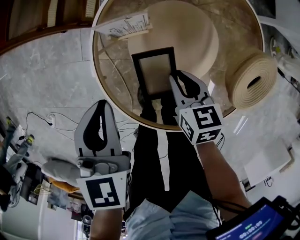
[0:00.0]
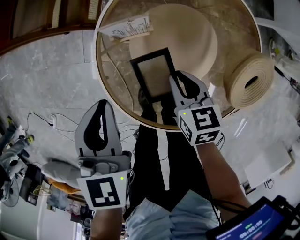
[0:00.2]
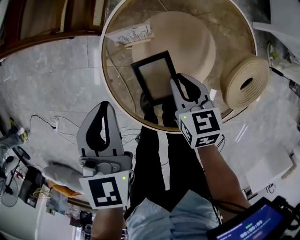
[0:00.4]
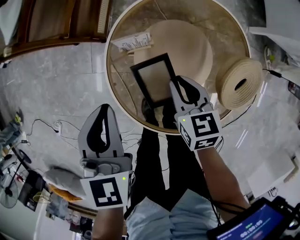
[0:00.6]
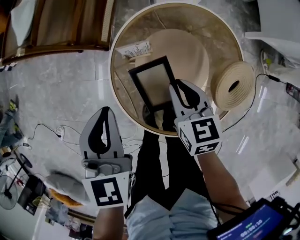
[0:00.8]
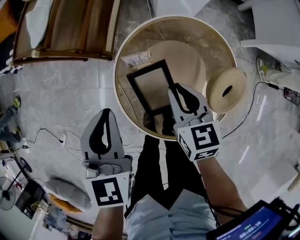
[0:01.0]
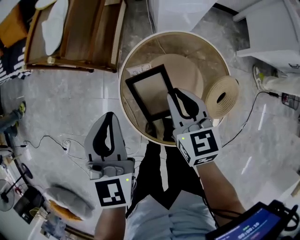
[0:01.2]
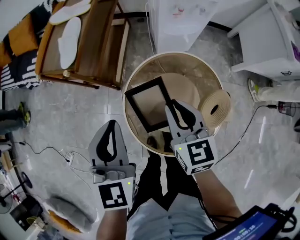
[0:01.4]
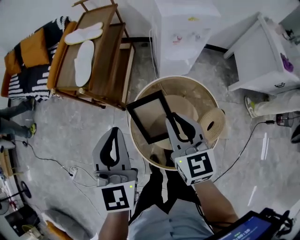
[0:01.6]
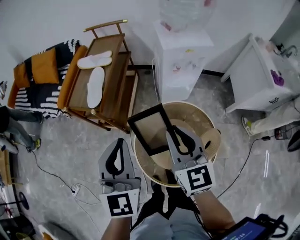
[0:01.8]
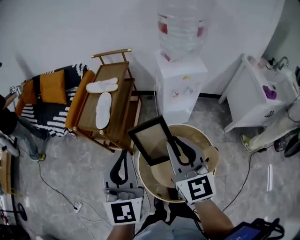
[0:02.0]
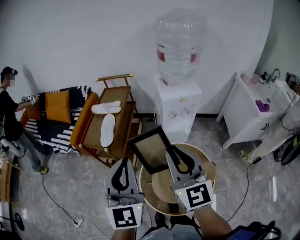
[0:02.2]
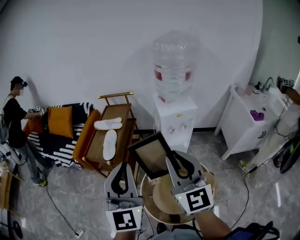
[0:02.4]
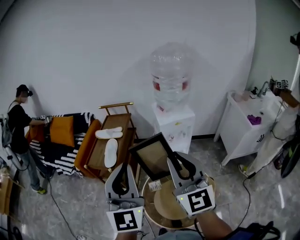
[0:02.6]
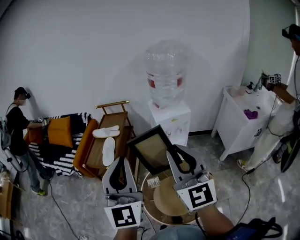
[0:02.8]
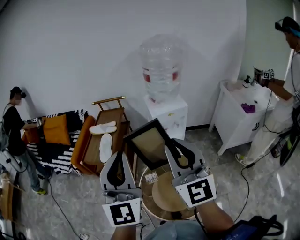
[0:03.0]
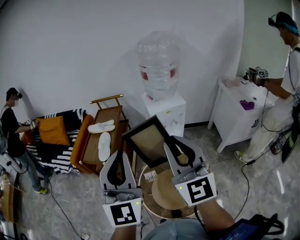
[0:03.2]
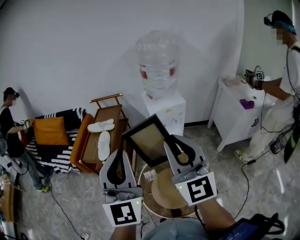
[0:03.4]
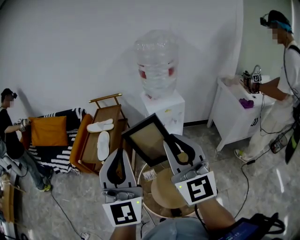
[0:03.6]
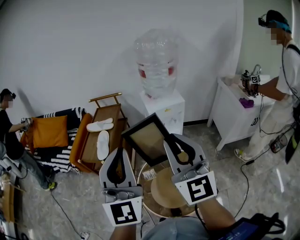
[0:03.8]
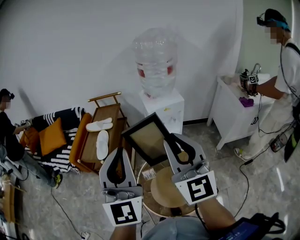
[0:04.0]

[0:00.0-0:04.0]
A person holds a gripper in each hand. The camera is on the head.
0:00.0 to 0:01.4: Both grippers travel together upward, approximately 30 cm. The left gripper changes its angle by approximately 20 degrees; the right gripper turns by some 30 degrees.
0:01.4 to 0:02.6: The two grippers go approximately 40 cm upward. The right gripper tips its fingers upward by some 40 degrees, while the left gripper points its fingers some 40 degrees further upward.
0:02.6 to 0:04.0: The grippers move only a little.

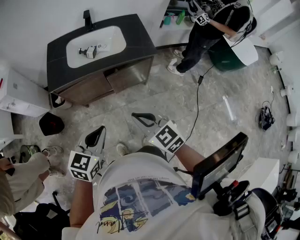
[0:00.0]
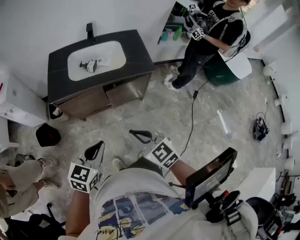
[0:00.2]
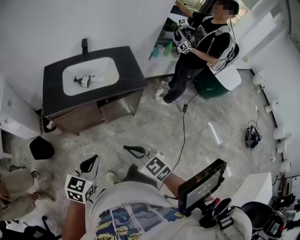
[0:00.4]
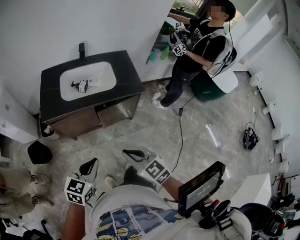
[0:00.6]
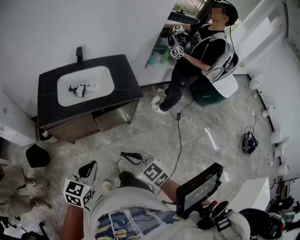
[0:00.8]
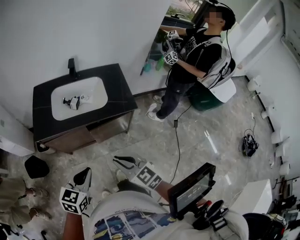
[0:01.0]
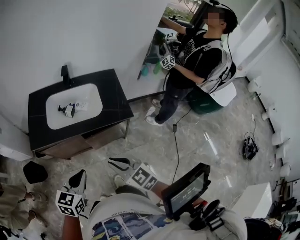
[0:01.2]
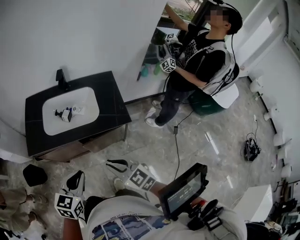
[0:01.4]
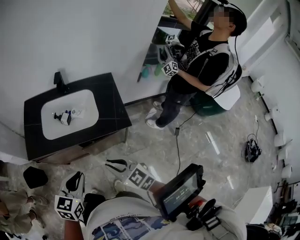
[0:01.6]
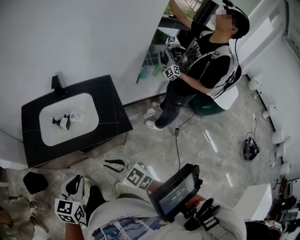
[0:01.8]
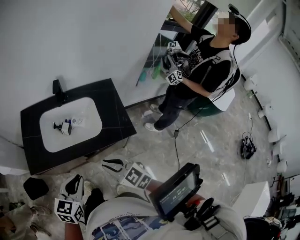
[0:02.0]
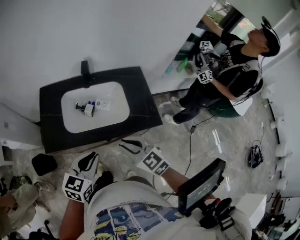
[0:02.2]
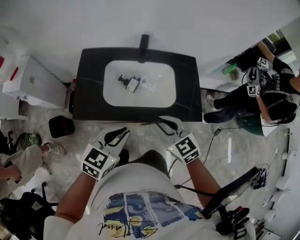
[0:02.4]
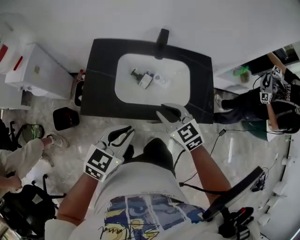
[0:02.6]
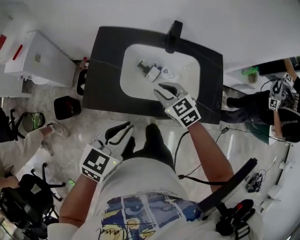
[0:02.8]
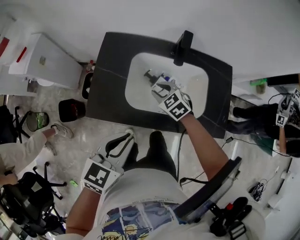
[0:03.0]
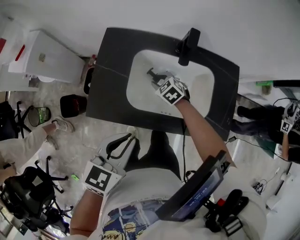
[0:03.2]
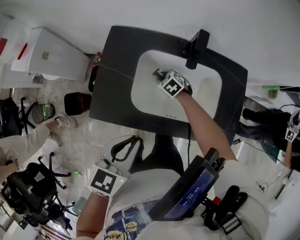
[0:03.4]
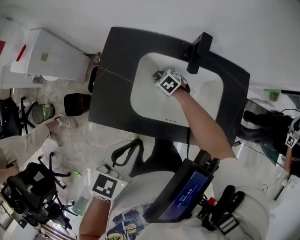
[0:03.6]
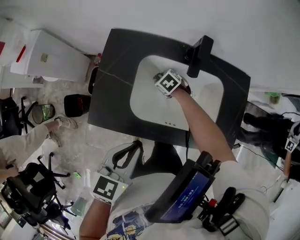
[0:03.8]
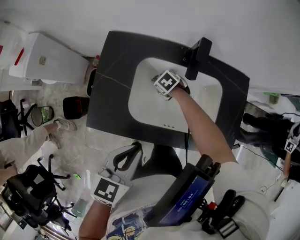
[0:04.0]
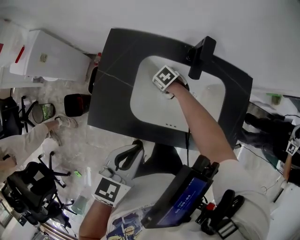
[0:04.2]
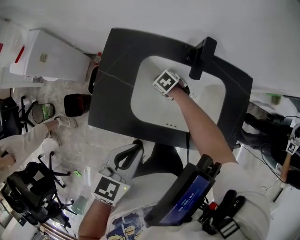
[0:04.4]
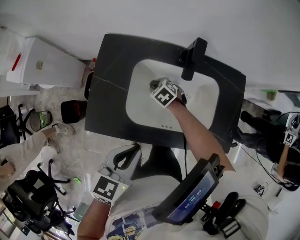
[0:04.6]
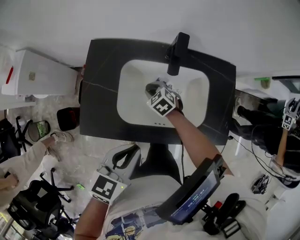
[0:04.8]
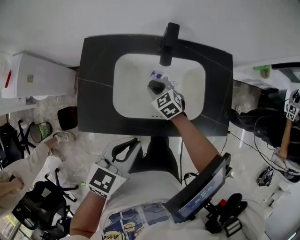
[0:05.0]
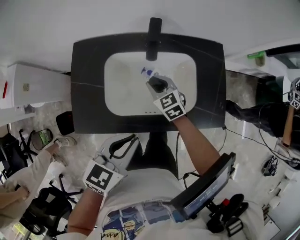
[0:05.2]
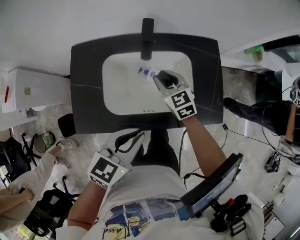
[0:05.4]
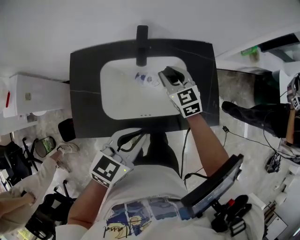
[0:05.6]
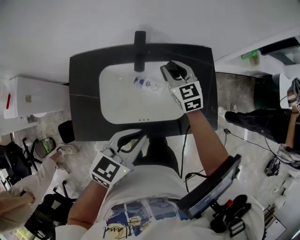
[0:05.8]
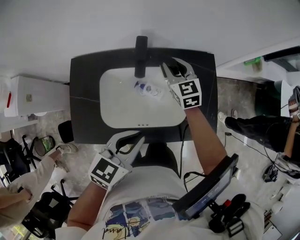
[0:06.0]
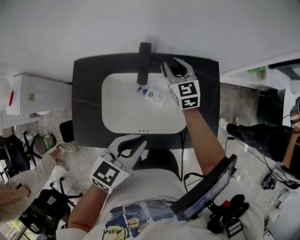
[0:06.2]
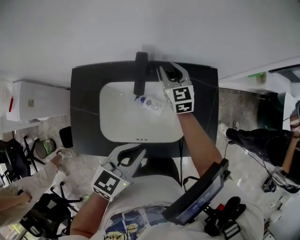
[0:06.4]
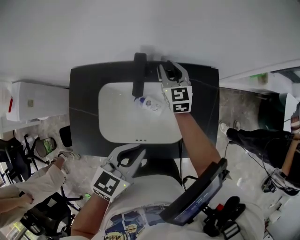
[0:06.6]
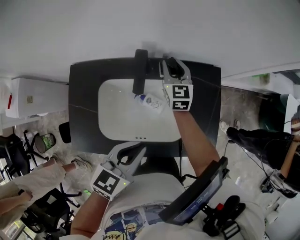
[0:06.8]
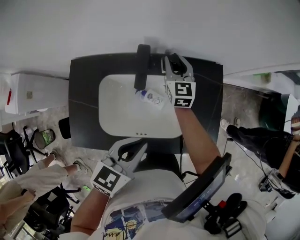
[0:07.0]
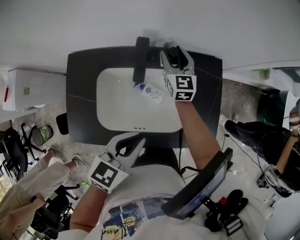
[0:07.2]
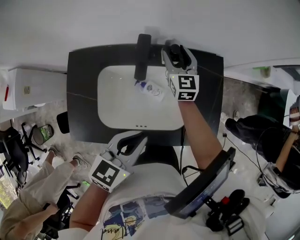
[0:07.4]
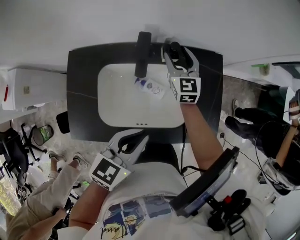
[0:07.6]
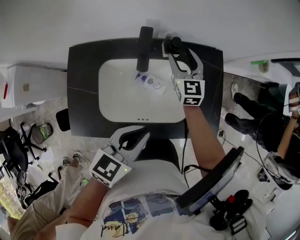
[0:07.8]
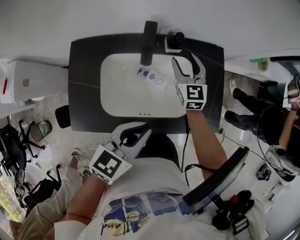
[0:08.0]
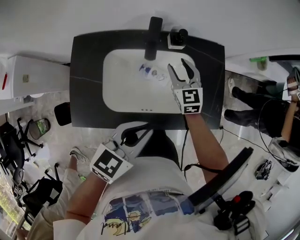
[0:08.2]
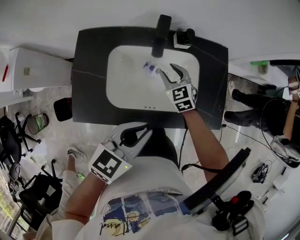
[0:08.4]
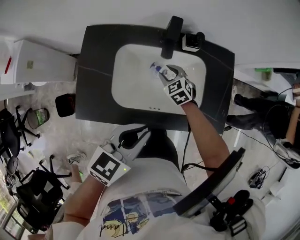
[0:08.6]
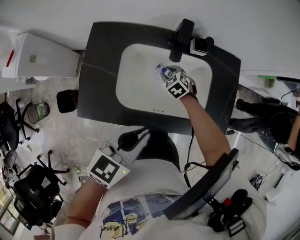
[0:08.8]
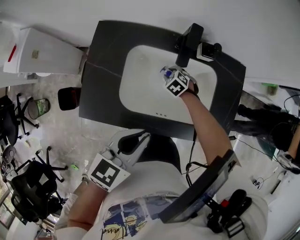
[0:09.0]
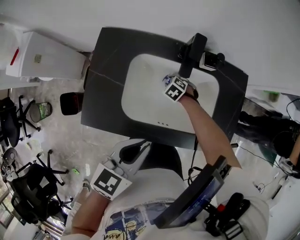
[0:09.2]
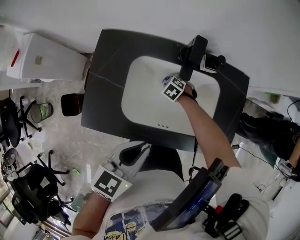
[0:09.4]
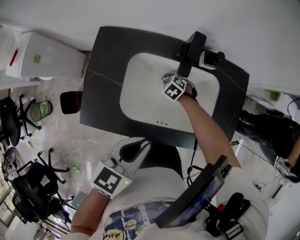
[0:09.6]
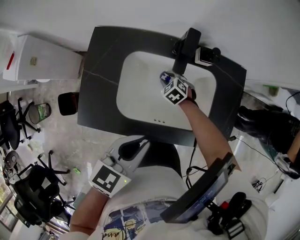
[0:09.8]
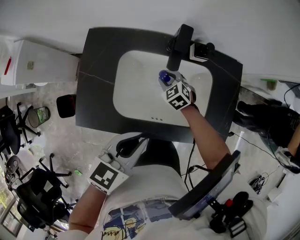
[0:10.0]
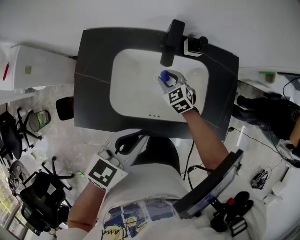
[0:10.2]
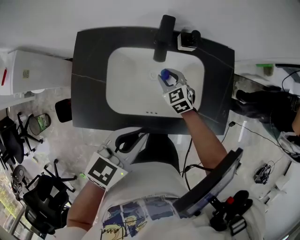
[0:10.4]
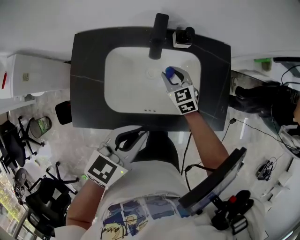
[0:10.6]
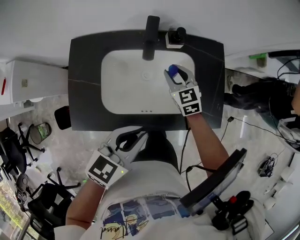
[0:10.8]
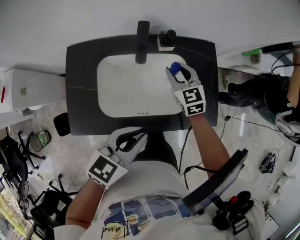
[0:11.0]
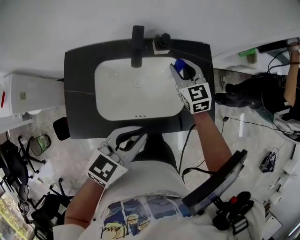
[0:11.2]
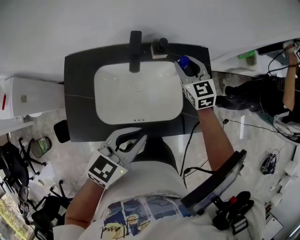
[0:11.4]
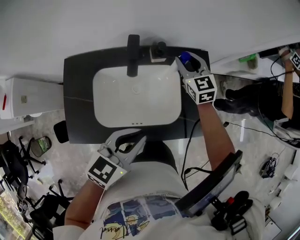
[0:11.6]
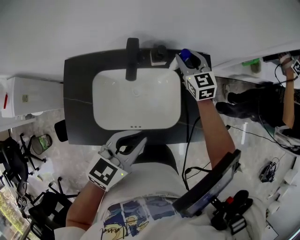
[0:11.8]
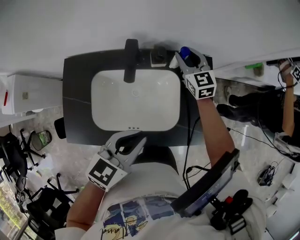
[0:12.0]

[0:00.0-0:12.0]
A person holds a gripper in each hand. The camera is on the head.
0:00.0 to 0:01.6: Both grippers move forward, about 15 cm.
0:01.6 to 0:03.0: The right gripper heads forward, to the left and downward, covering some 40 cm, and rotates approximately 30 degrees. Meanwhile the left gripper shifts roughly 25 cm to the left and forward.
0:03.0 to 0:04.4: The right gripper moves downward, roughly 15 cm, and rotates about 30 degrees, while the left gripper moves about 5 cm.
0:04.4 to 0:06.0: The right gripper goes roughly 25 cm upward, and angles its fingers upward, by approximately 50 degrees; the left gripper changes place by some 15 cm, and turns by some 20 degrees.
0:06.0 to 0:07.6: The right gripper opens up.
0:07.6 to 0:09.0: The left gripper travels to the left and backward by some 10 cm, while the right gripper moves downward, backward and to the left, about 30 cm, tilts its fingers some 50 degrees downward, and closes its fingers.
0:09.0 to 0:10.4: The right gripper goes about 10 cm upward, and swivels approximately 30 degrees.
0:10.4 to 0:12.0: The left gripper goes roughly 10 cm to the right and forward; the right gripper shifts some 30 cm forward, upward and to the right, and swivels roughly 30 degrees.

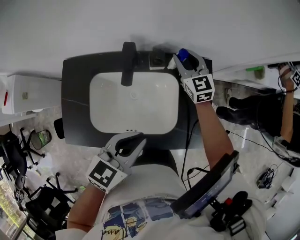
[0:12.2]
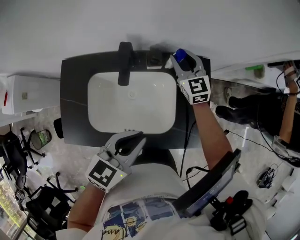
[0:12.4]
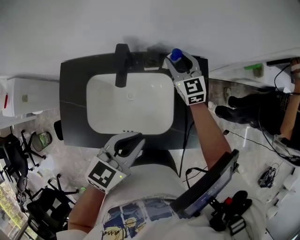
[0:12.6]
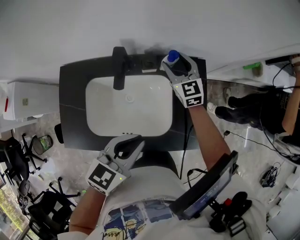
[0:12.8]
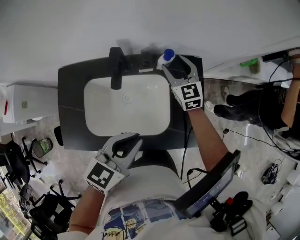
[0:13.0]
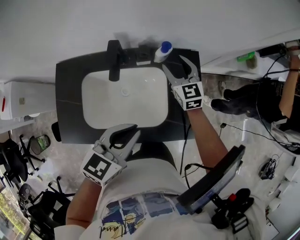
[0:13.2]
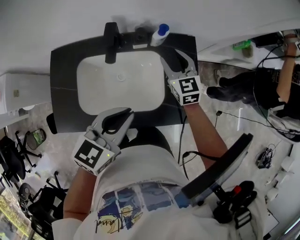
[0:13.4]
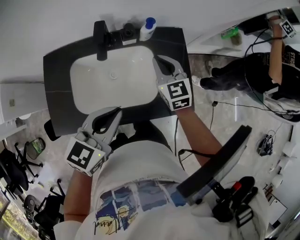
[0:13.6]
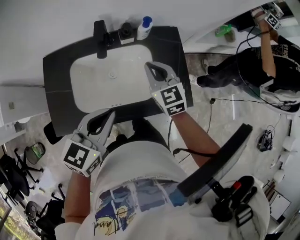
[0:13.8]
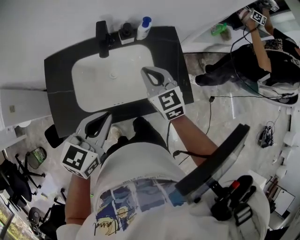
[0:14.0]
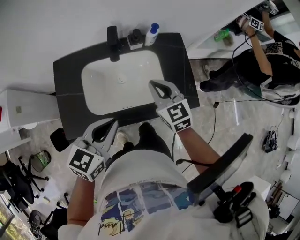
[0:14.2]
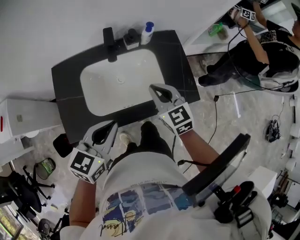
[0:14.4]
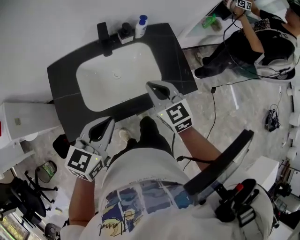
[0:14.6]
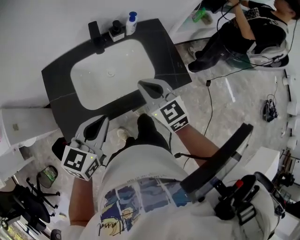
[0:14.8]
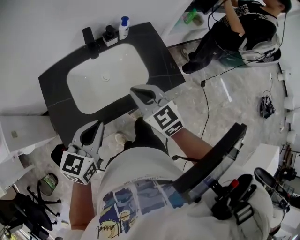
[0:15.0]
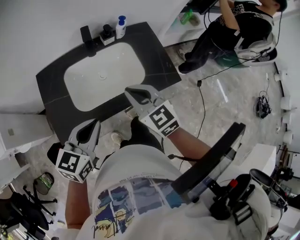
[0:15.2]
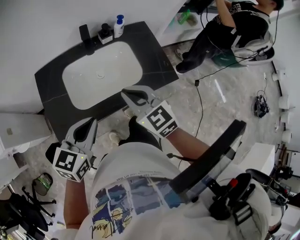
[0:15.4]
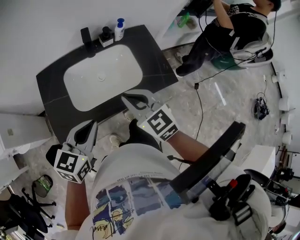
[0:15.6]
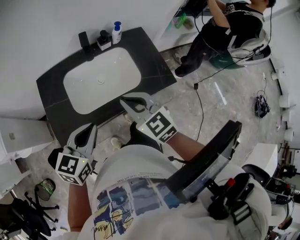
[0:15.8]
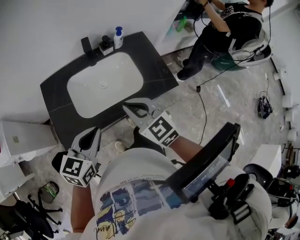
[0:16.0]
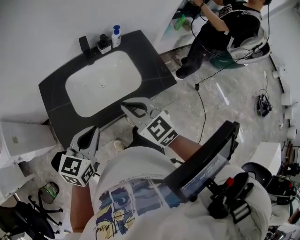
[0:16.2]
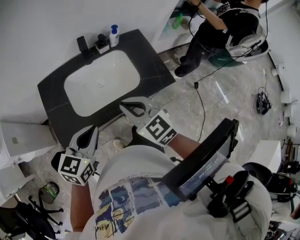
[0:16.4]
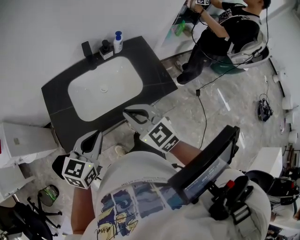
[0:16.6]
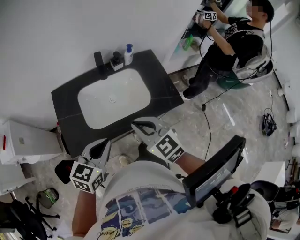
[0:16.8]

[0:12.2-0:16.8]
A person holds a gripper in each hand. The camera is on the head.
0:12.2 to 0:13.8: The right gripper moves backward, roughly 20 cm, and closes up; the left gripper is displaced backward by some 5 cm.
0:13.8 to 0:15.2: The right gripper moves backward, about 20 cm. The left gripper is displaced backward and to the left by approximately 15 cm.
0:15.2 to 0:16.8: The right gripper shifts some 5 cm backward.

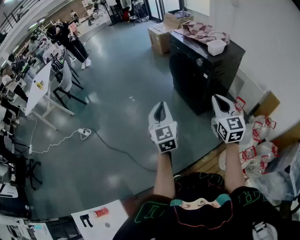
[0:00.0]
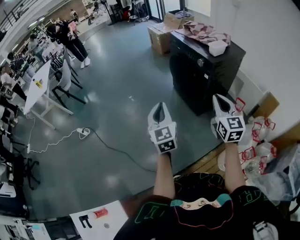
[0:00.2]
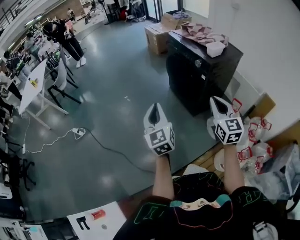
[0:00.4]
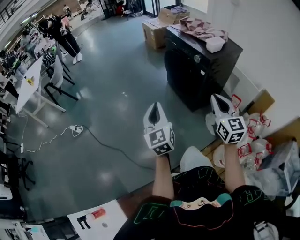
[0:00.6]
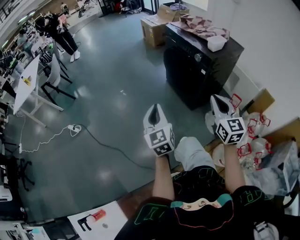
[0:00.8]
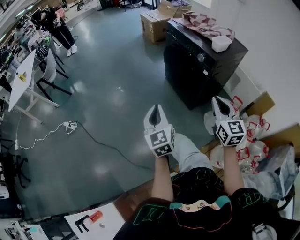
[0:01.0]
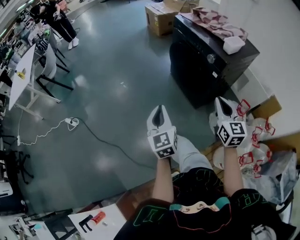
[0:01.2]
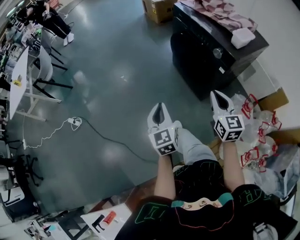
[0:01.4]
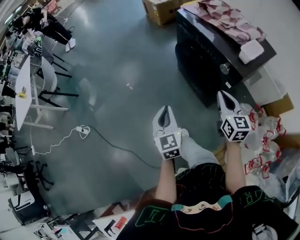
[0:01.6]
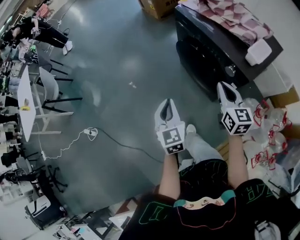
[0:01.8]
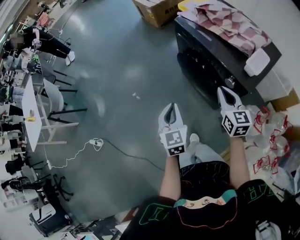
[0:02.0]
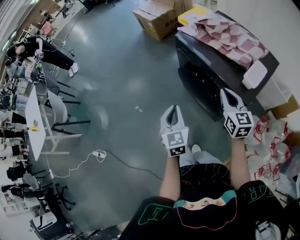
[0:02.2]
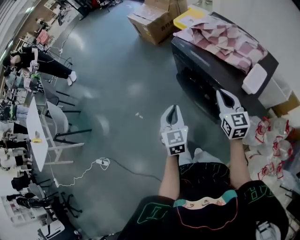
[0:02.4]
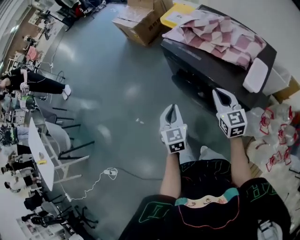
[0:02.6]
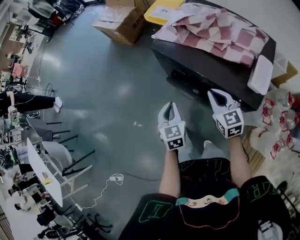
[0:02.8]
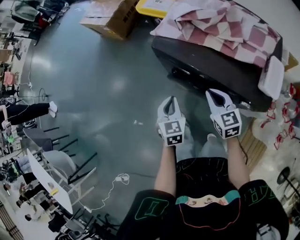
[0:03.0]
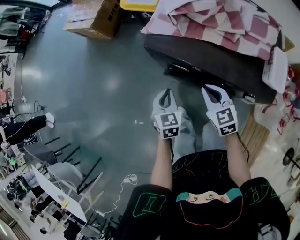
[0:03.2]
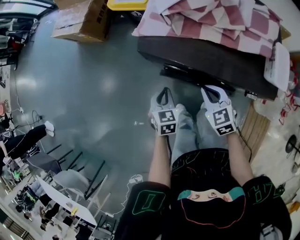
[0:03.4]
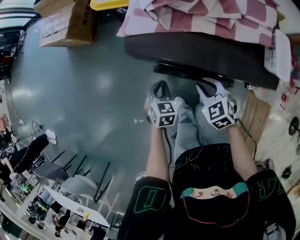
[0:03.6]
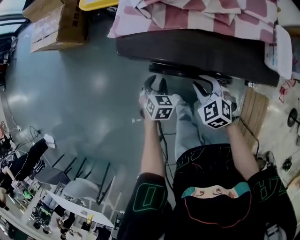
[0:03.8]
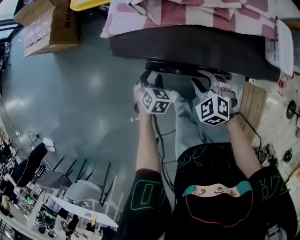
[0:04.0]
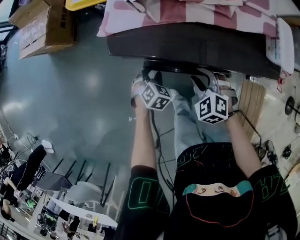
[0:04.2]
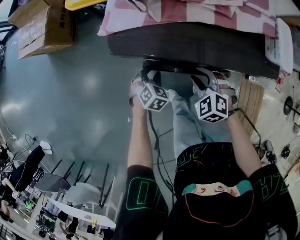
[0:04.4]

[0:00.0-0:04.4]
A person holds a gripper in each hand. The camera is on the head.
0:00.0 to 0:01.4: Both grippers move forward and downward, some 30 cm.
0:01.4 to 0:03.0: The two grippers travel together, about 50 cm. The right gripper turns by about 30 degrees, while the left gripper turns by about 50 degrees.
0:03.0 to 0:04.4: The left gripper is displaced downward by about 20 cm, swivels roughly 60 degrees, and opens up. The right gripper travels downward by about 15 cm, changes its angle by about 40 degrees, and opens.
